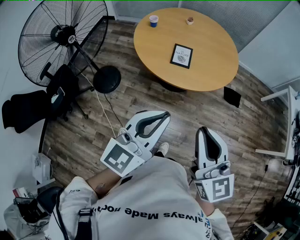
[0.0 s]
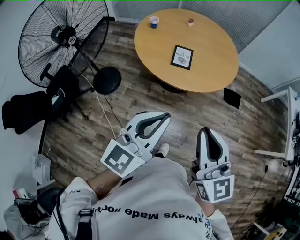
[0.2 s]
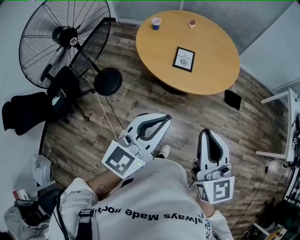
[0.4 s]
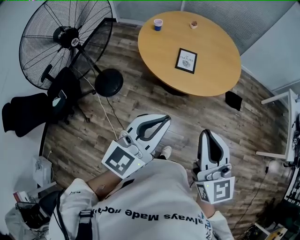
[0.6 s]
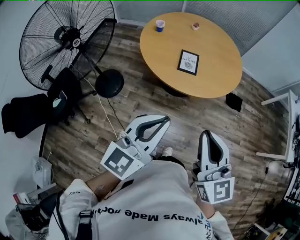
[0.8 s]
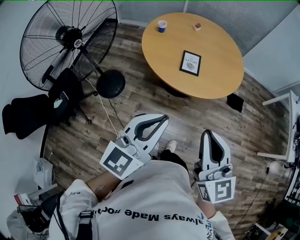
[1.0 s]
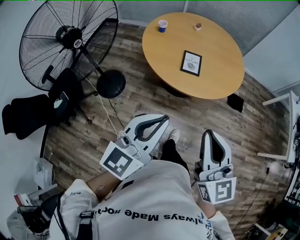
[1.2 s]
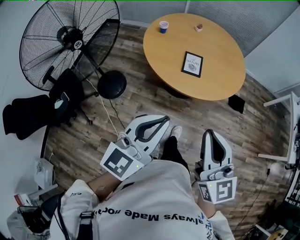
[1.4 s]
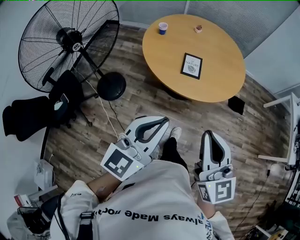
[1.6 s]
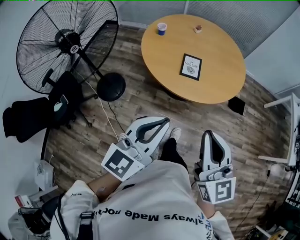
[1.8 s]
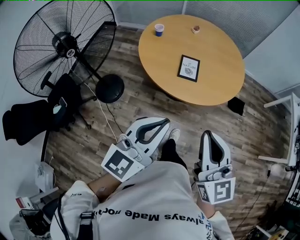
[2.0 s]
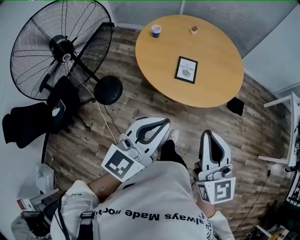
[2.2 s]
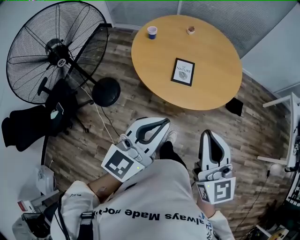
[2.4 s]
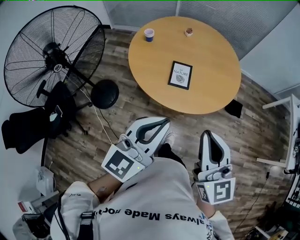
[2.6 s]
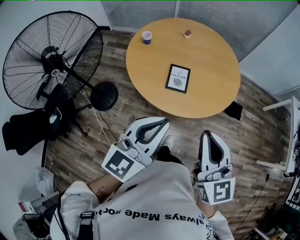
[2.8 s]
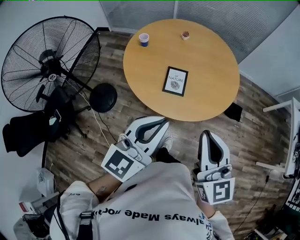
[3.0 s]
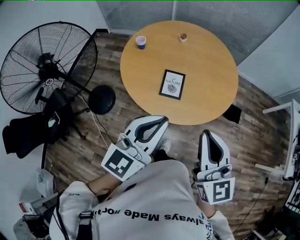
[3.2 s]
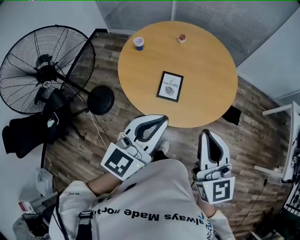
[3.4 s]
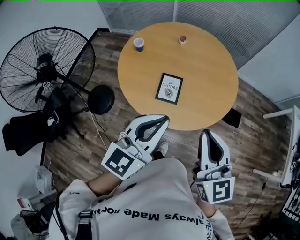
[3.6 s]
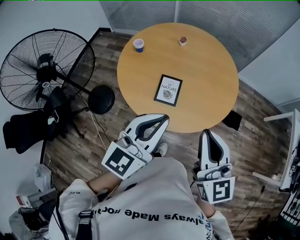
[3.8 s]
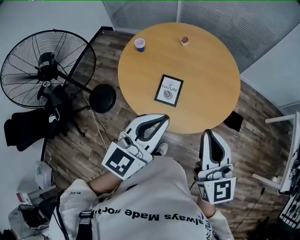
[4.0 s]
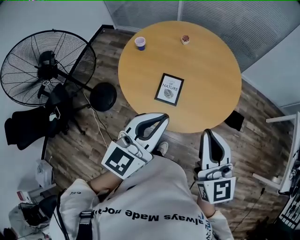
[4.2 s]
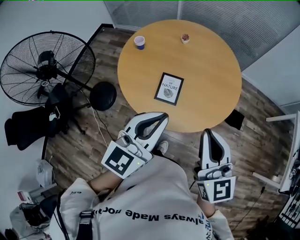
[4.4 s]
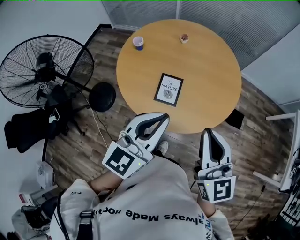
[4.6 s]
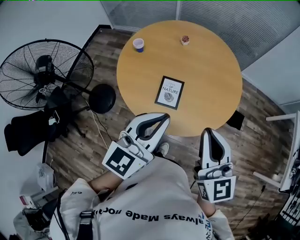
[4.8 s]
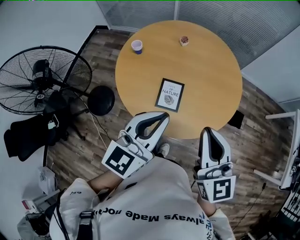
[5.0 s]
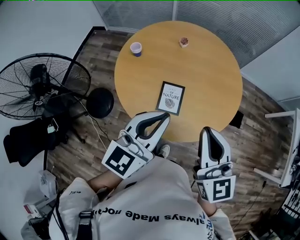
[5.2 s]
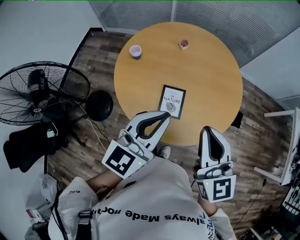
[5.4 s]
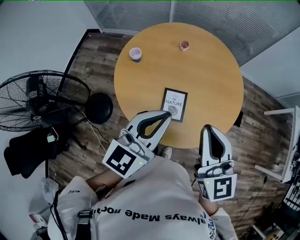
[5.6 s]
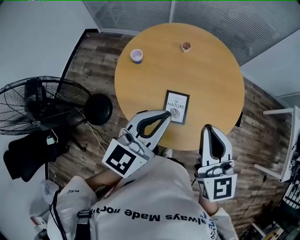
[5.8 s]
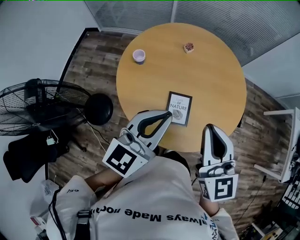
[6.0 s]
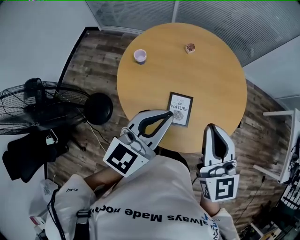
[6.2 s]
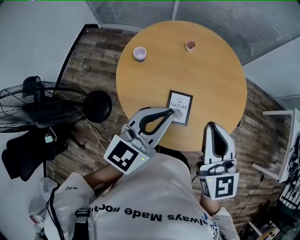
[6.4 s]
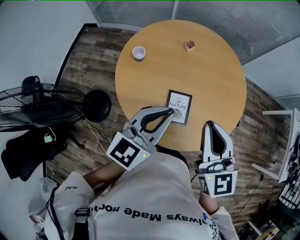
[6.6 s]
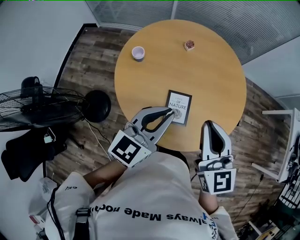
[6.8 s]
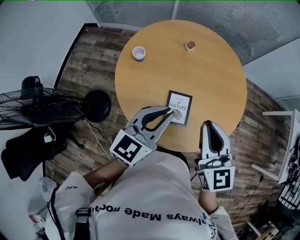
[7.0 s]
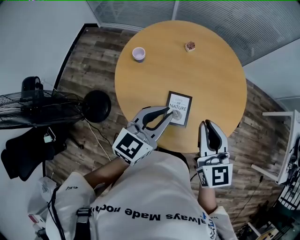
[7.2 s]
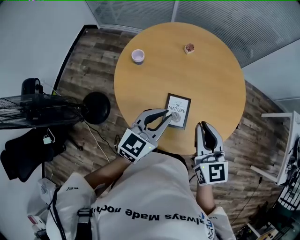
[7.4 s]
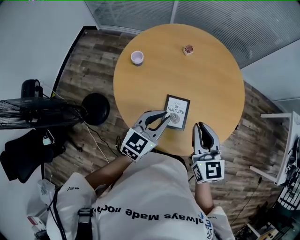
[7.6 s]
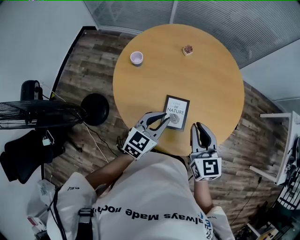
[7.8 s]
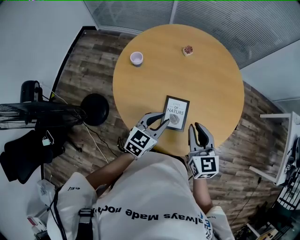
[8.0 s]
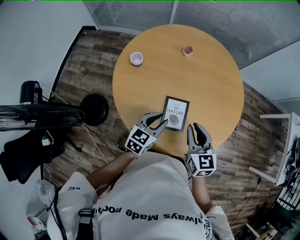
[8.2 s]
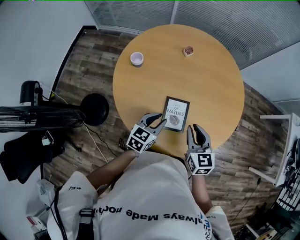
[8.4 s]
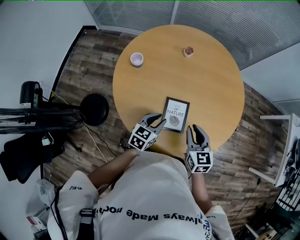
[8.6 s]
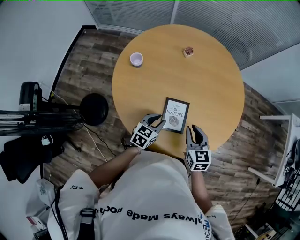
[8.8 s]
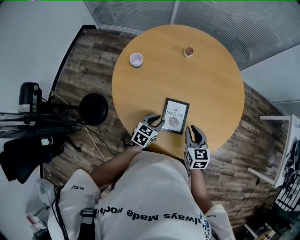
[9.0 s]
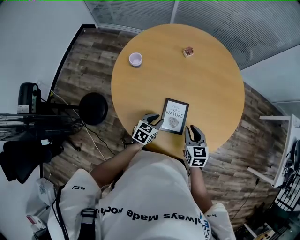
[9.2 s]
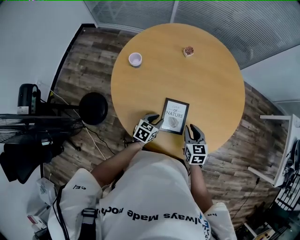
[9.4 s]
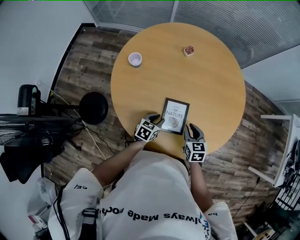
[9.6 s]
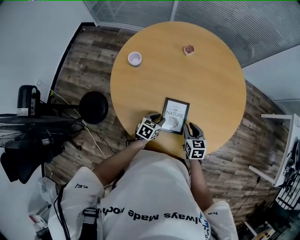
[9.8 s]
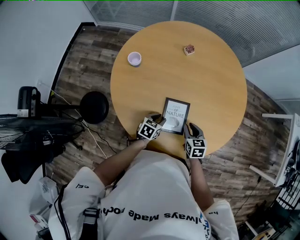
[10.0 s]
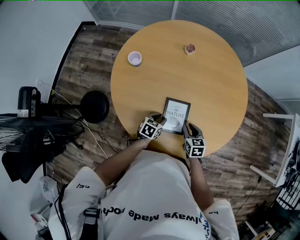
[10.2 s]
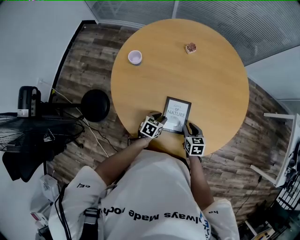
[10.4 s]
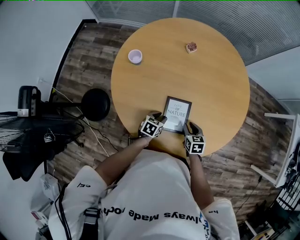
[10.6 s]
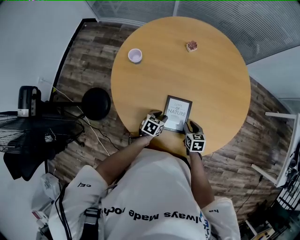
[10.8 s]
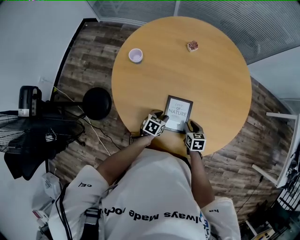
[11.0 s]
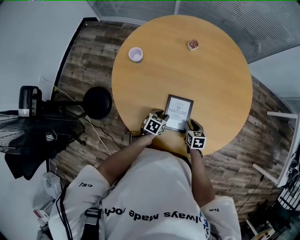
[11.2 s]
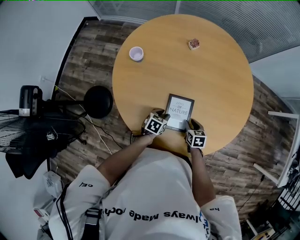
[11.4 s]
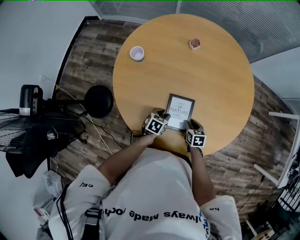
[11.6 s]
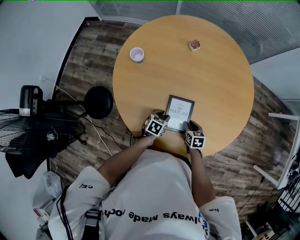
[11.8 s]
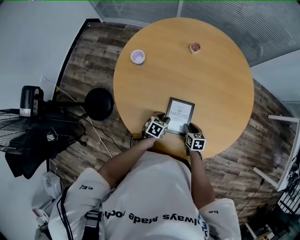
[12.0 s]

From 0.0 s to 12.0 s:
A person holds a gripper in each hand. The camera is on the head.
From 0.0 s to 1.6 s: The grippers both shift to the left by approximately 10 cm.
From 1.6 s to 3.0 s: Both grippers travel together forward and to the right, approximately 20 cm.
From 3.0 s to 4.4 s: The two grippers go some 15 cm forward and to the right.
From 4.4 s to 6.0 s: Both grippers move forward and to the left, approximately 20 cm.
From 6.0 s to 7.6 s: The grippers both shift downward by about 15 cm.
From 7.6 s to 9.0 s: Both grippers move downward, approximately 20 cm. The left gripper turns by some 20 degrees.
From 9.0 s to 10.4 s: Both grippers travel together downward, some 10 cm.
From 10.4 s to 12.0 s: The right gripper is displaced downward by approximately 5 cm.

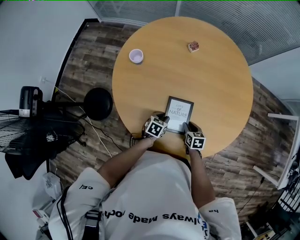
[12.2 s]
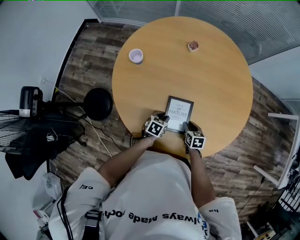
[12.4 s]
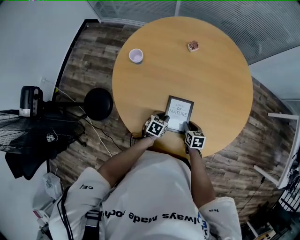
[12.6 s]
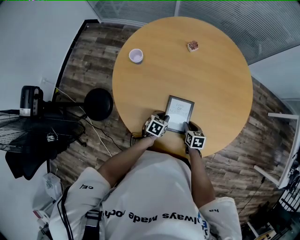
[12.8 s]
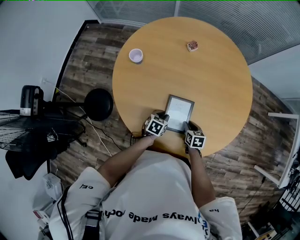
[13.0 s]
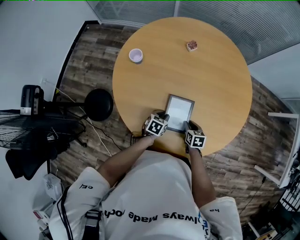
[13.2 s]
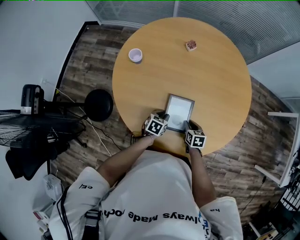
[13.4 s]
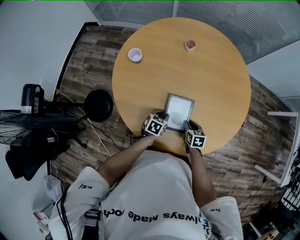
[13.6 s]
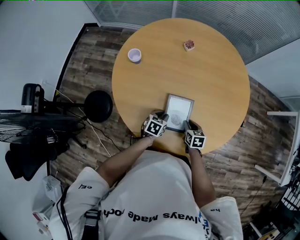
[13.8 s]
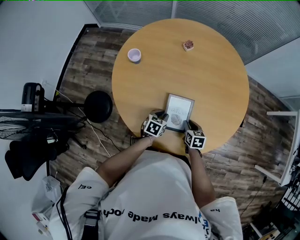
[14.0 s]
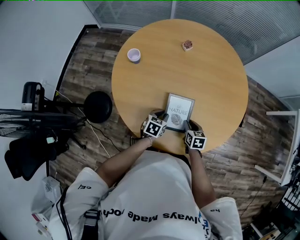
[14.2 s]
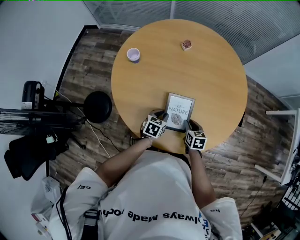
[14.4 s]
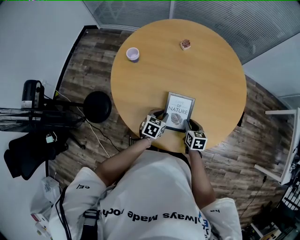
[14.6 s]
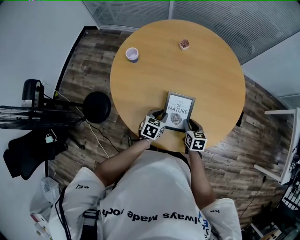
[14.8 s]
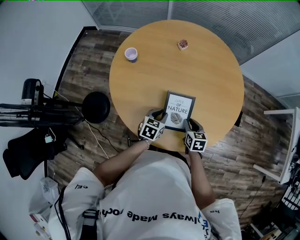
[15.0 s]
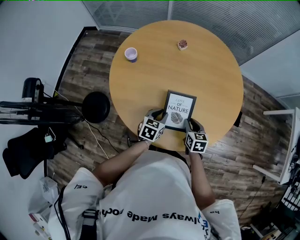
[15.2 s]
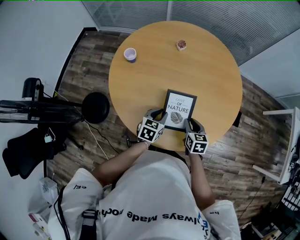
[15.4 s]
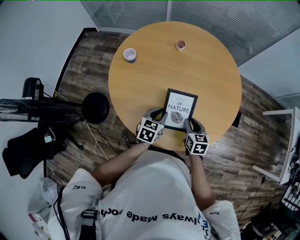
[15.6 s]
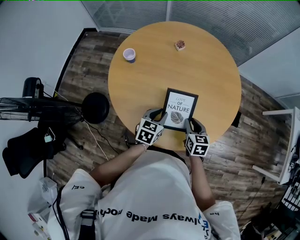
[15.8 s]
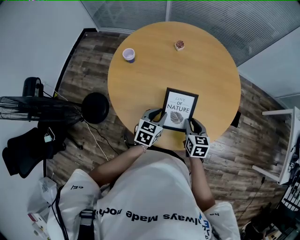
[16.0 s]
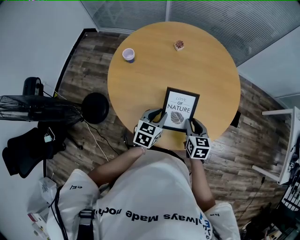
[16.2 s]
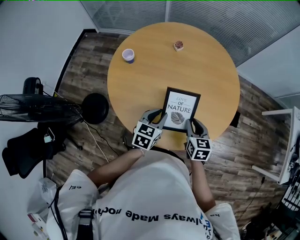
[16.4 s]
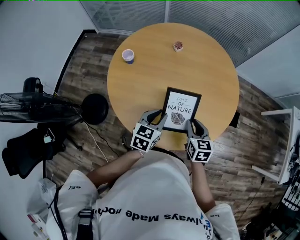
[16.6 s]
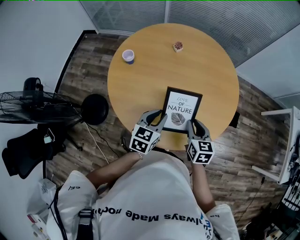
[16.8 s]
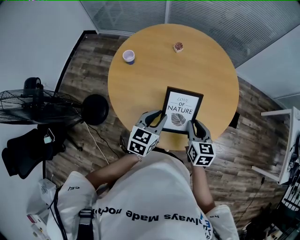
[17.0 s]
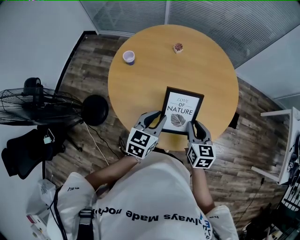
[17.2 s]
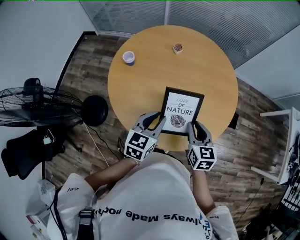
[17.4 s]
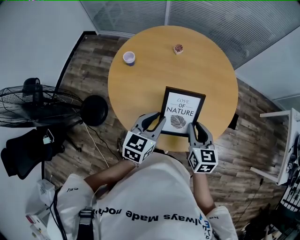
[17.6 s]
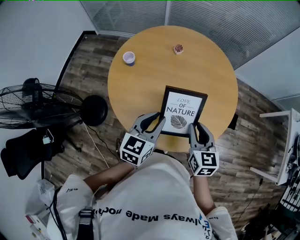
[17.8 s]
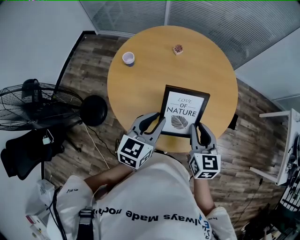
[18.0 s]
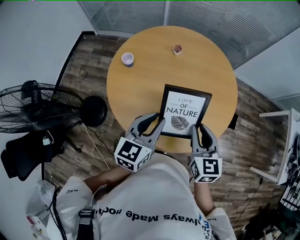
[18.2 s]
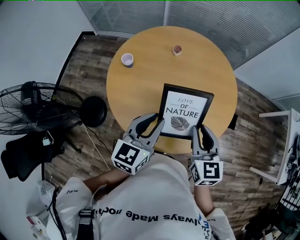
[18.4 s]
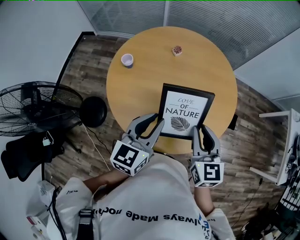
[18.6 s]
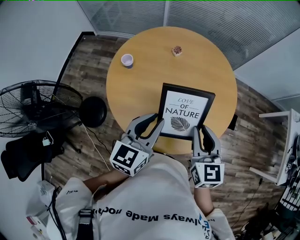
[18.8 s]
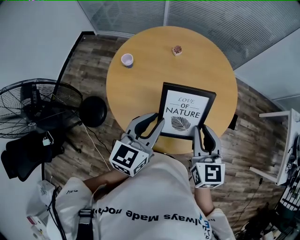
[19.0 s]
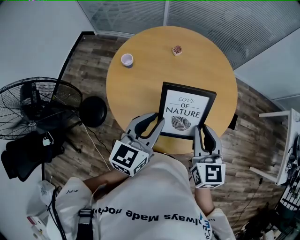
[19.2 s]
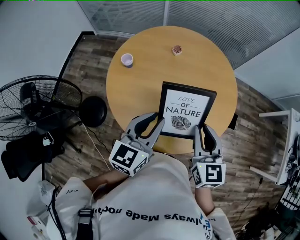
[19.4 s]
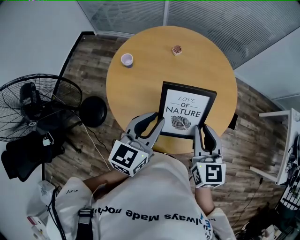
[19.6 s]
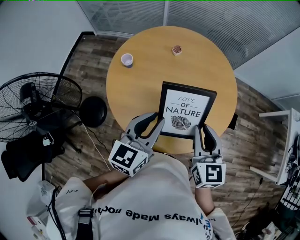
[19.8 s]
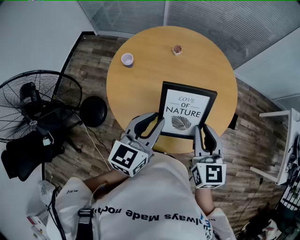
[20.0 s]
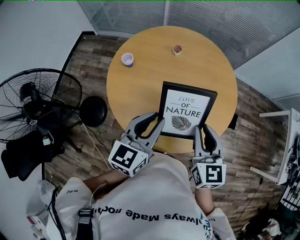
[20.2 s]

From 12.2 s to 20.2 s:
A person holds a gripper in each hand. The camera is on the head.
From 12.2 s to 13.8 s: The grippers stay close to where they were, moving slightly.
From 13.8 s to 15.4 s: Both grippers move upward, approximately 10 cm.
From 15.4 s to 17.0 s: The two grippers go about 15 cm upward.
From 17.0 s to 18.6 s: The grippers both shift upward by roughly 15 cm.
From 18.6 s to 20.2 s: The grippers move only a little.

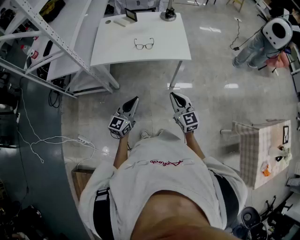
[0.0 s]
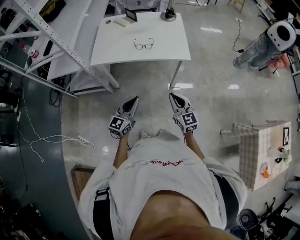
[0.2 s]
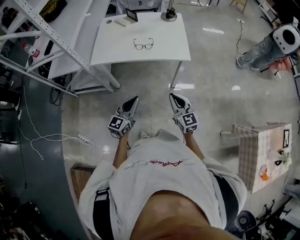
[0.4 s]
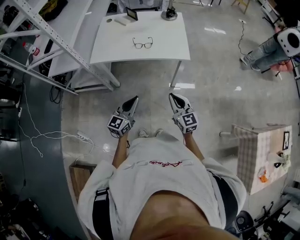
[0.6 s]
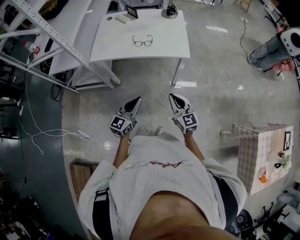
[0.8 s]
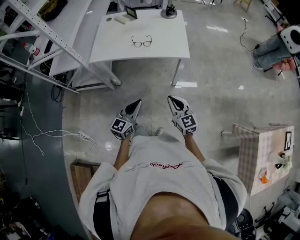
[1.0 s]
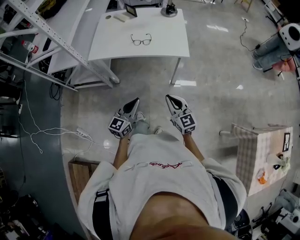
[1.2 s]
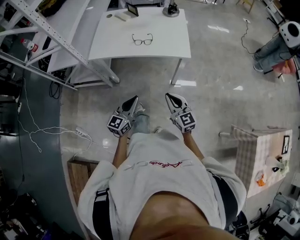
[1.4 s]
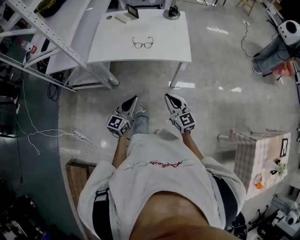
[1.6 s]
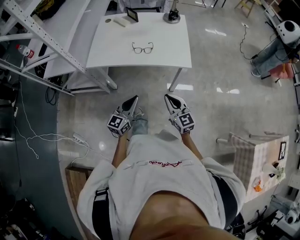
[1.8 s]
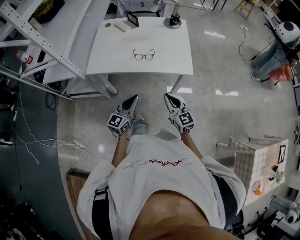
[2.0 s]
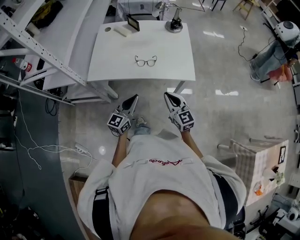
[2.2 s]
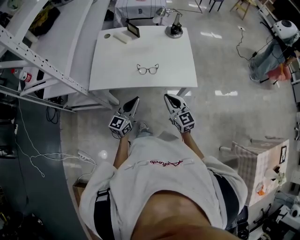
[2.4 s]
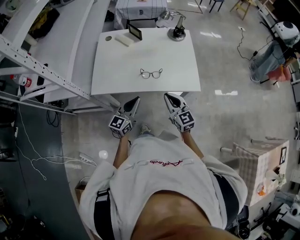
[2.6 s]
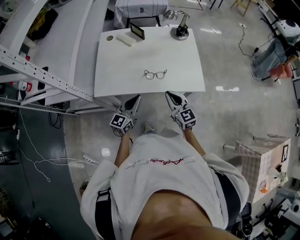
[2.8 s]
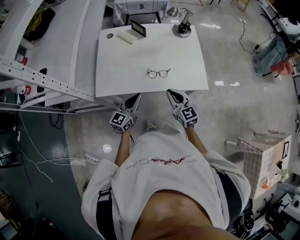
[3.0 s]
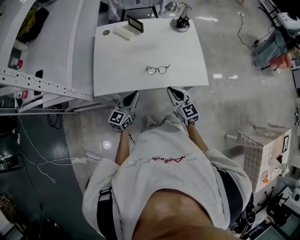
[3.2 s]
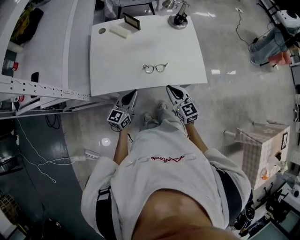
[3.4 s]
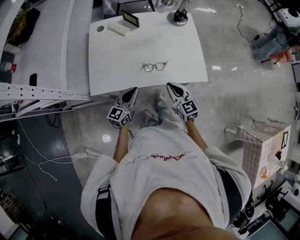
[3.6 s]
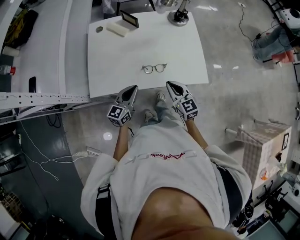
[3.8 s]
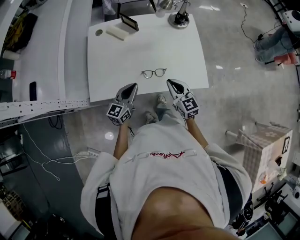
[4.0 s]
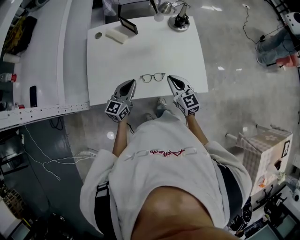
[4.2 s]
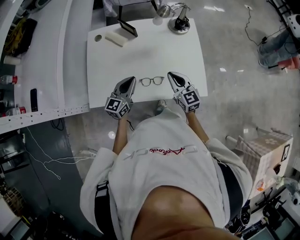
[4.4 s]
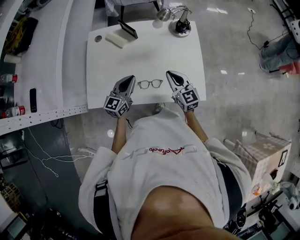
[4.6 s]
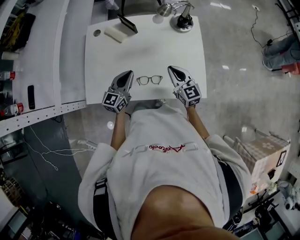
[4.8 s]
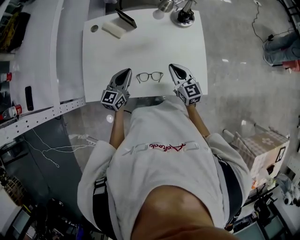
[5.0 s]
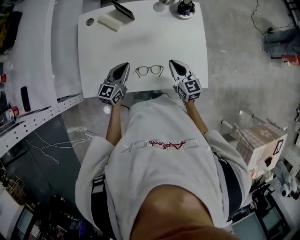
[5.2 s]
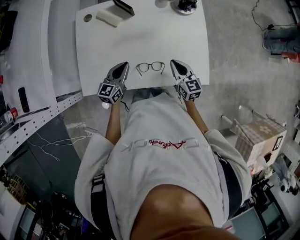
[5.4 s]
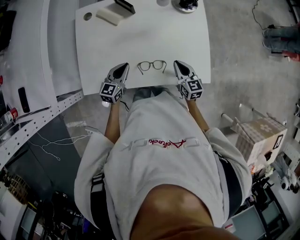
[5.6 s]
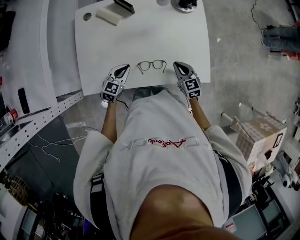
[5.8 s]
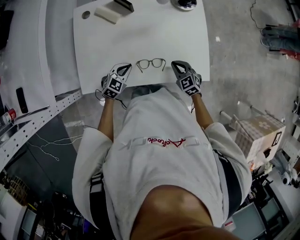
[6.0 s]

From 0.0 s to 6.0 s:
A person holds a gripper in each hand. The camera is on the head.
From 1.6 s to 3.0 s: The two grippers go some 30 cm forward and to the left.
From 3.0 s to 4.4 s: Both grippers move forward, approximately 15 cm.
From 4.4 s to 6.0 s: The grippers both shift downward by some 15 cm. The right gripper rotates some 30 degrees, while the left gripper points its fingers roughly 30 degrees further downward.
